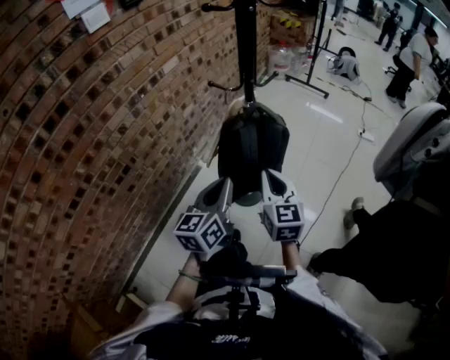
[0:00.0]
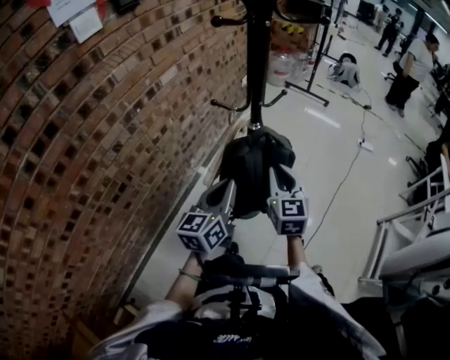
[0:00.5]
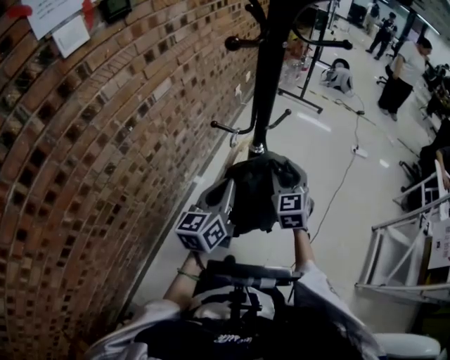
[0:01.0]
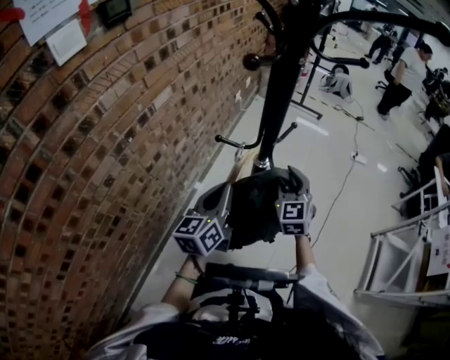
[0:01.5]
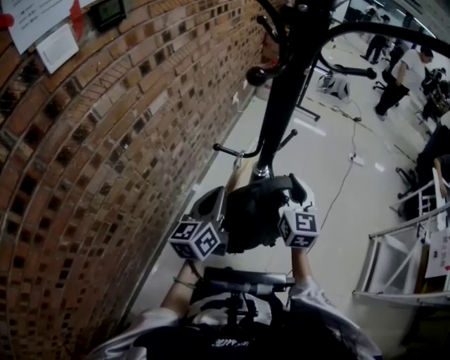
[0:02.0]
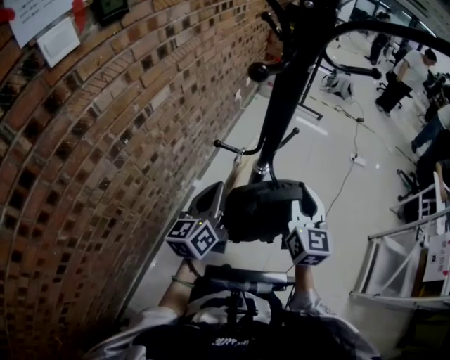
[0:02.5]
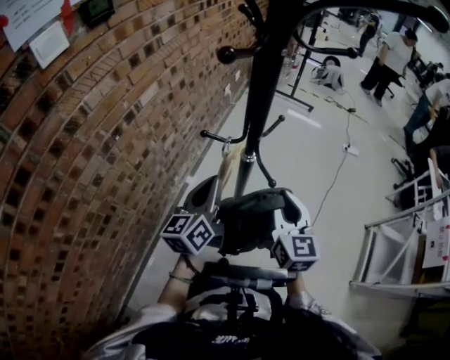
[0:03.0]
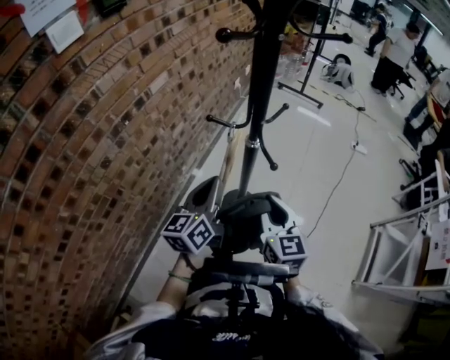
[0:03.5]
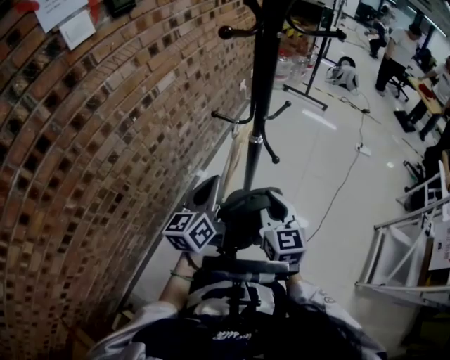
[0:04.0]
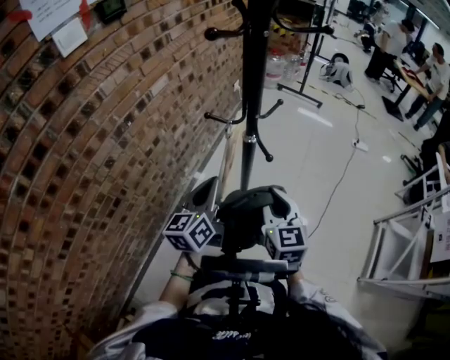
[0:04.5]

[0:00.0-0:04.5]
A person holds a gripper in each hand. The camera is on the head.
0:00.0 to 0:02.0: Both grippers move forward, roughly 25 cm. The right gripper opens, then closes again.
0:02.0 to 0:04.5: The right gripper shifts about 15 cm backward. Meanwhile the left gripper goes approximately 10 cm backward.

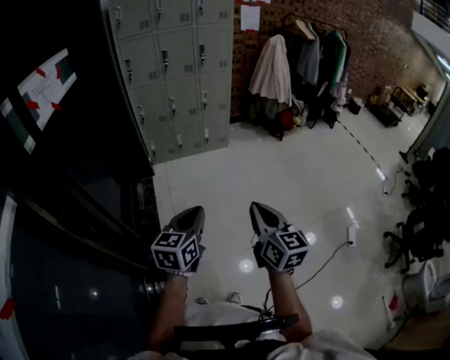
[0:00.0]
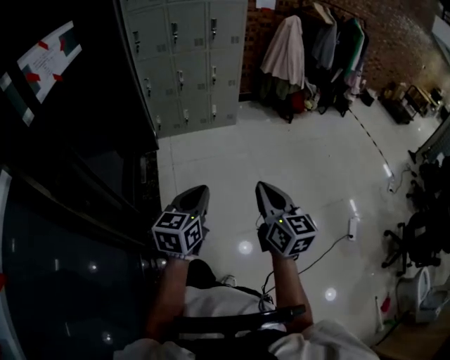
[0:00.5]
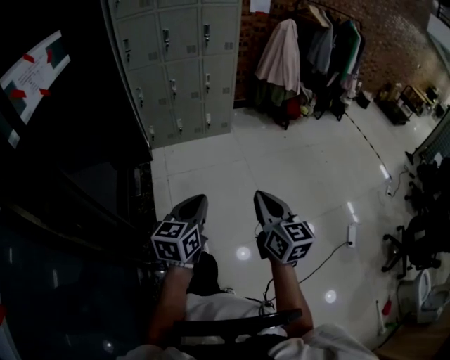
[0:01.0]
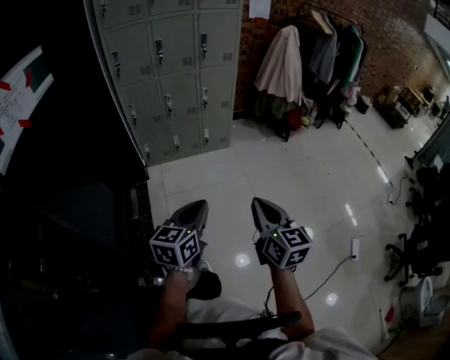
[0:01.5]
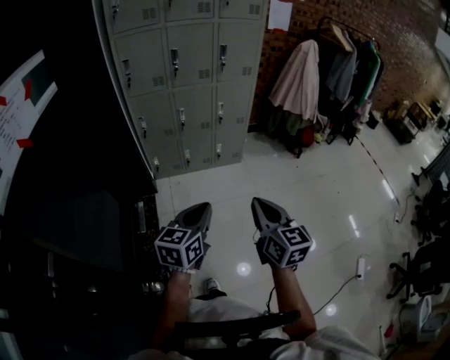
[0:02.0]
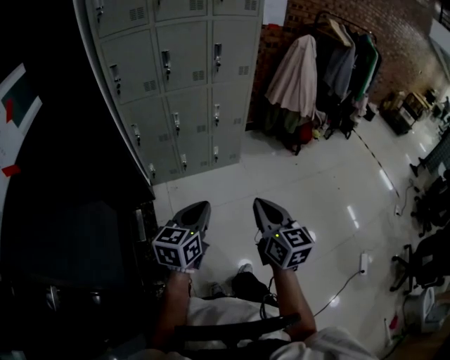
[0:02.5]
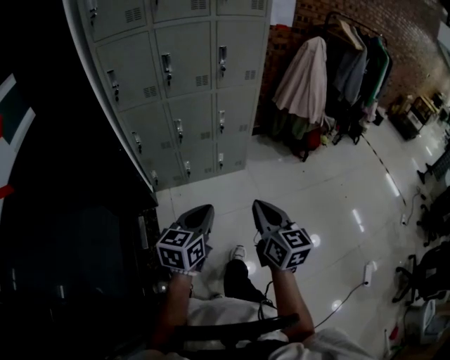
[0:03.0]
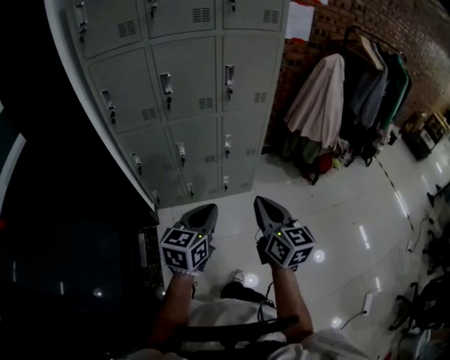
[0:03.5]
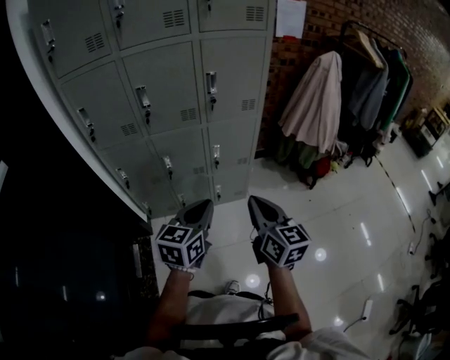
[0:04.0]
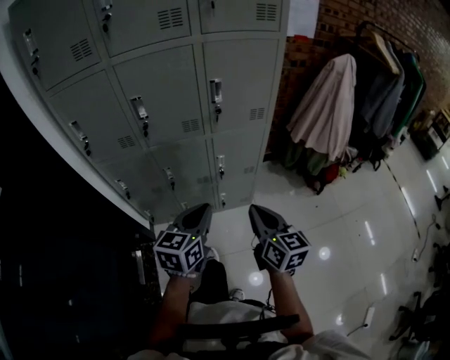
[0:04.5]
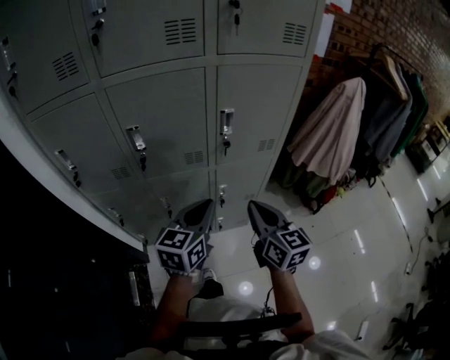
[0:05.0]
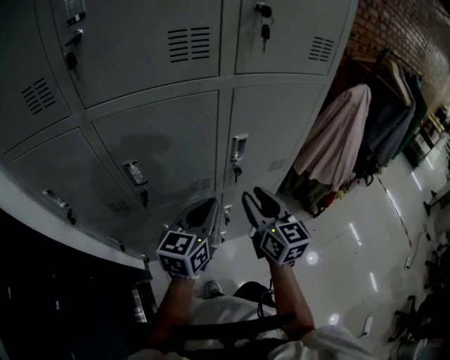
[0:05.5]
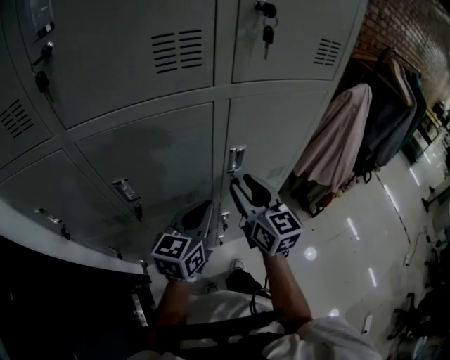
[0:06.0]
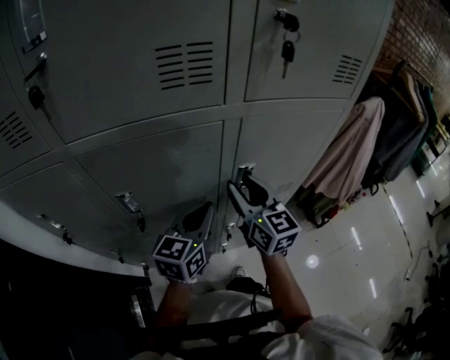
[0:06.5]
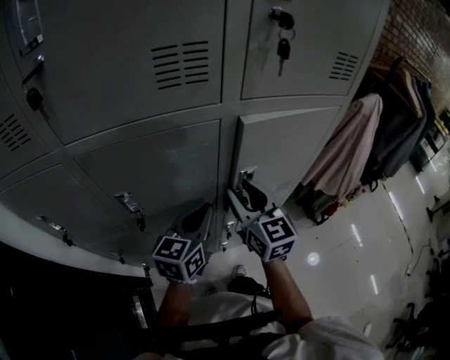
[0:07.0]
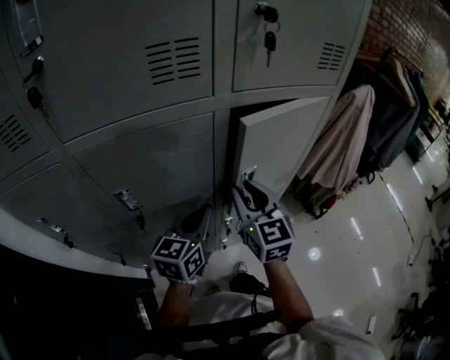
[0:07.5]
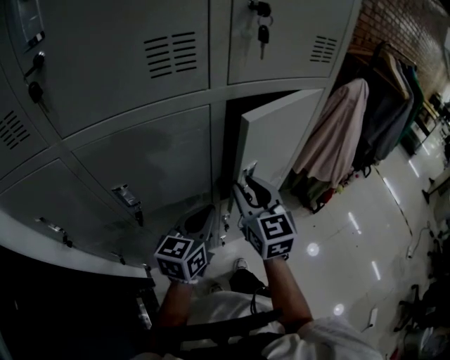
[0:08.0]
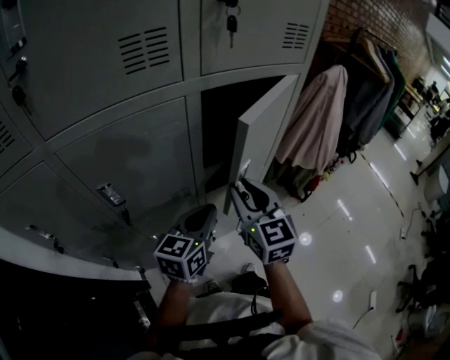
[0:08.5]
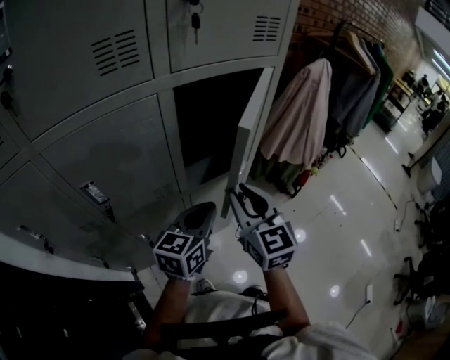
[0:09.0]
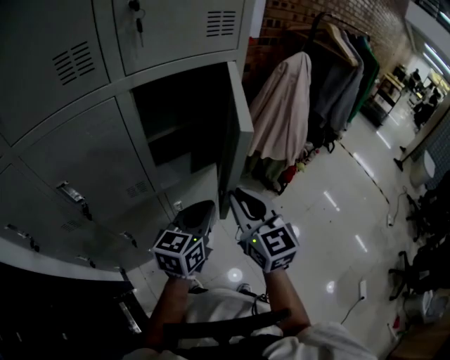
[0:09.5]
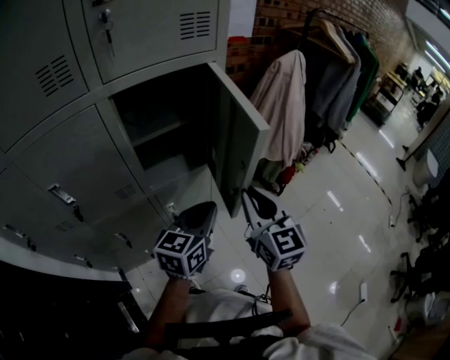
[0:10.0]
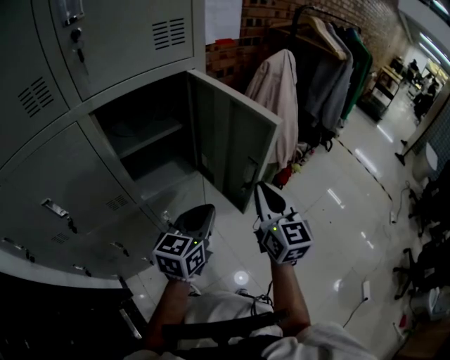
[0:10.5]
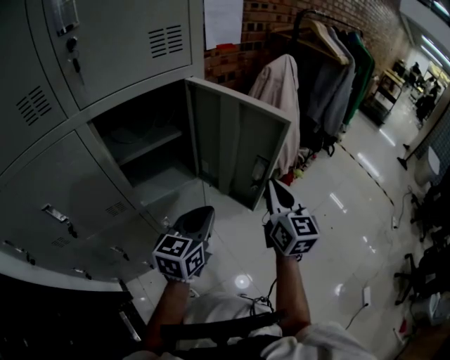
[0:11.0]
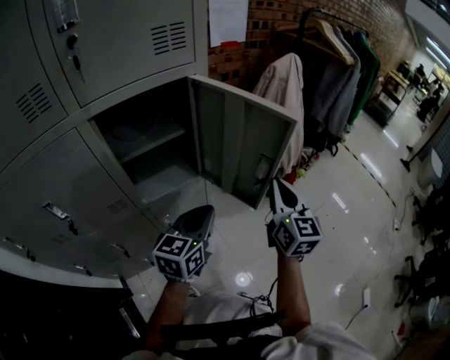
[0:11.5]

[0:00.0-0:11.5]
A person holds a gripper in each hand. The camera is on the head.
0:00.0 to 0:02.0: The two grippers go about 35 cm forward.
0:02.0 to 0:04.0: Both grippers are carried forward, roughly 40 cm.
0:04.0 to 0:06.0: The grippers both shift forward by some 40 cm. The right gripper opens up.
0:06.0 to 0:07.5: The right gripper closes its fingers.
0:07.5 to 0:09.5: The left gripper travels to the right by approximately 20 cm. The right gripper goes approximately 20 cm to the right and backward.
0:09.5 to 0:11.5: The right gripper heads to the right and forward, covering about 20 cm, and changes its angle by some 20 degrees. The left gripper moves to the right and forward, some 10 cm.

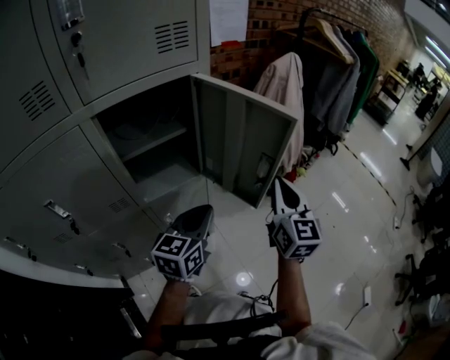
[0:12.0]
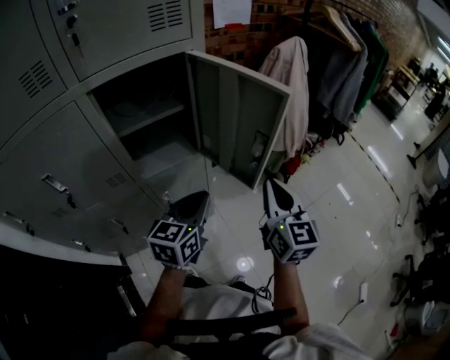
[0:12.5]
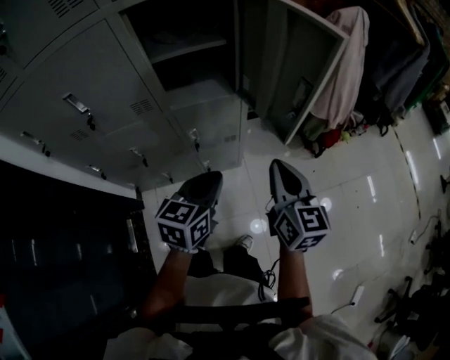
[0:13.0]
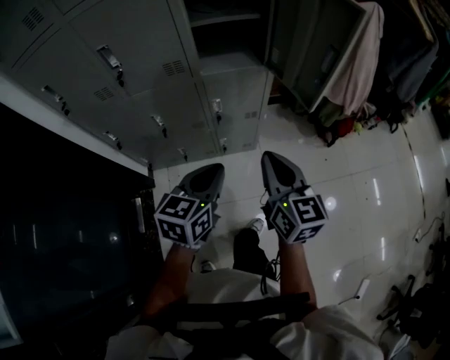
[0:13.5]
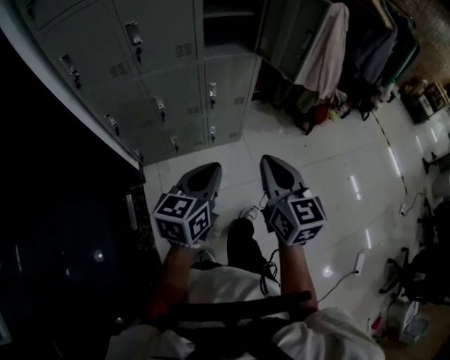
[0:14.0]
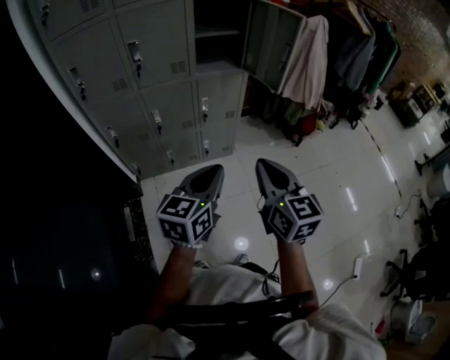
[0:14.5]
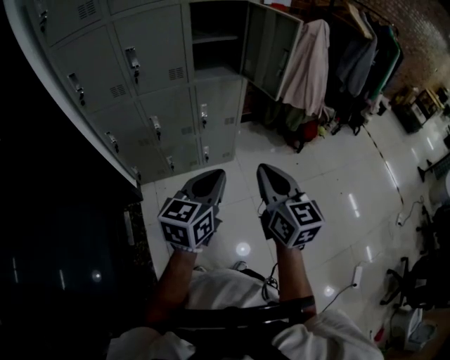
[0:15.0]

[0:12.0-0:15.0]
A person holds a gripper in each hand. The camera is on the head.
0:12.0 to 0:13.5: The right gripper moves approximately 25 cm, and rotates some 40 degrees. Meanwhile the left gripper ends up approximately 25 cm from where it was, and rotates roughly 20 degrees.
0:13.5 to 0:15.0: The right gripper shifts roughly 25 cm backward. The left gripper heads backward and upward, covering some 25 cm.

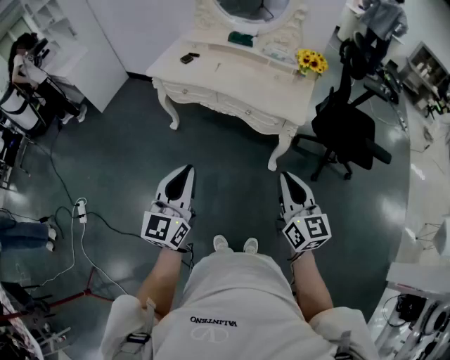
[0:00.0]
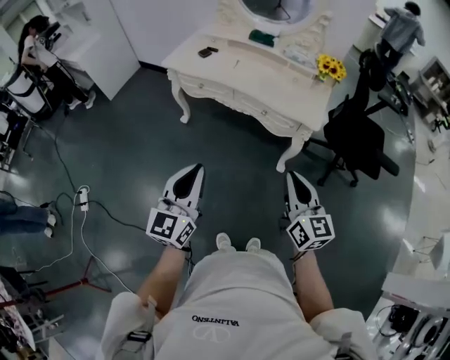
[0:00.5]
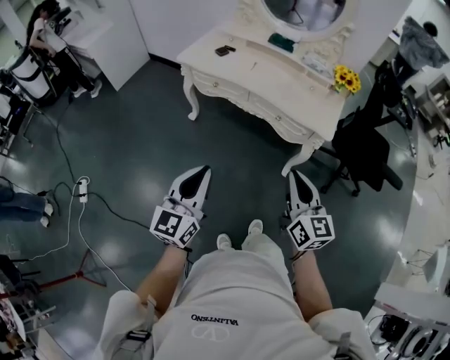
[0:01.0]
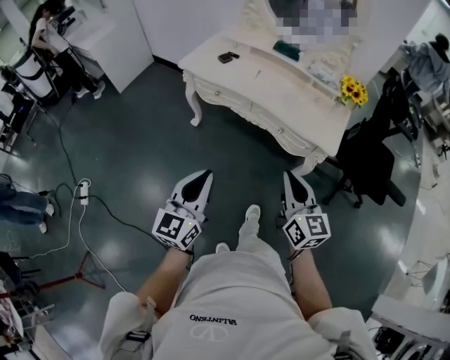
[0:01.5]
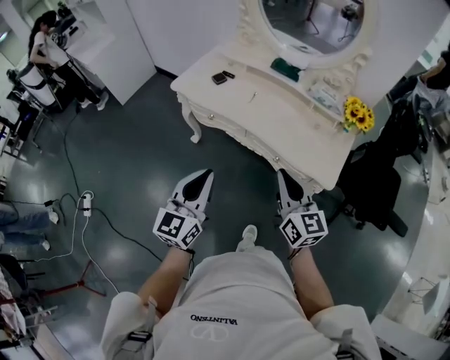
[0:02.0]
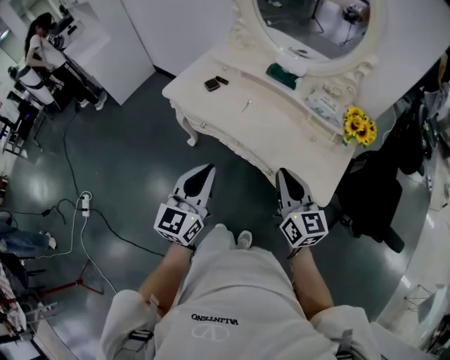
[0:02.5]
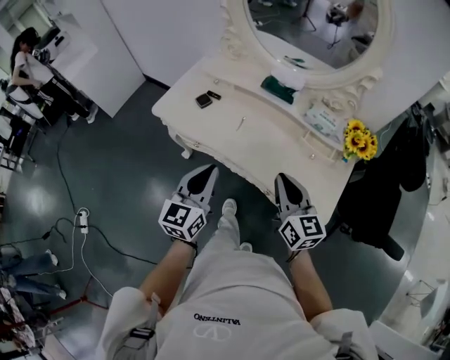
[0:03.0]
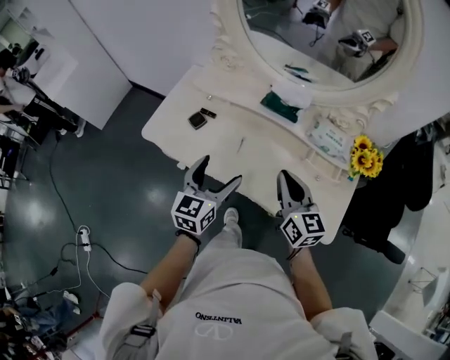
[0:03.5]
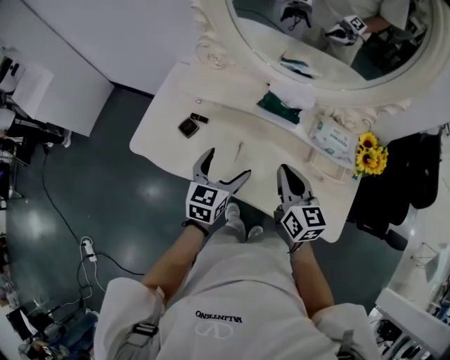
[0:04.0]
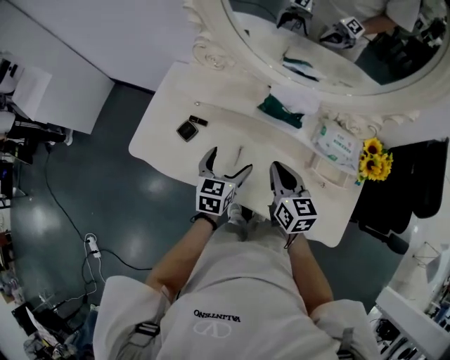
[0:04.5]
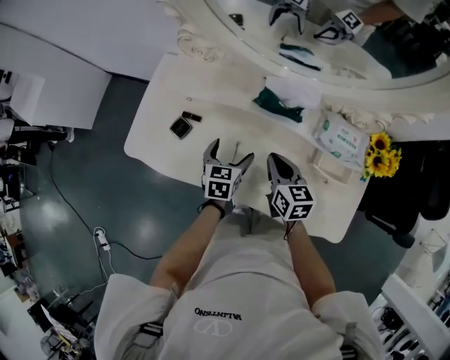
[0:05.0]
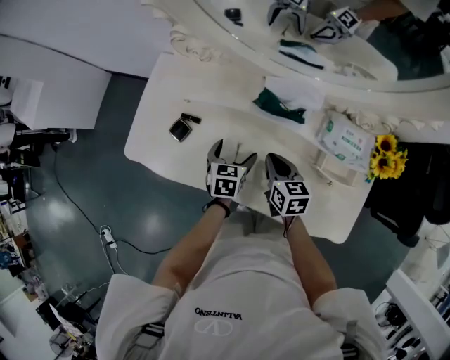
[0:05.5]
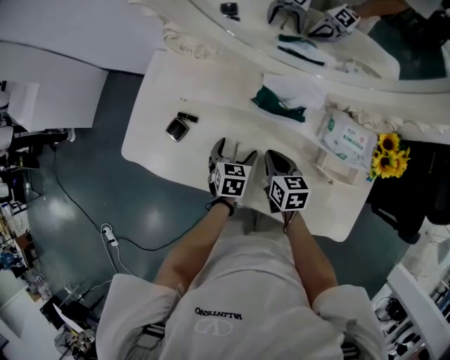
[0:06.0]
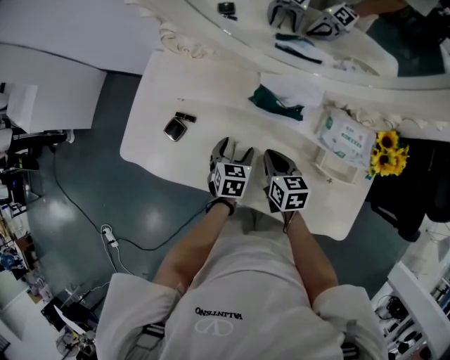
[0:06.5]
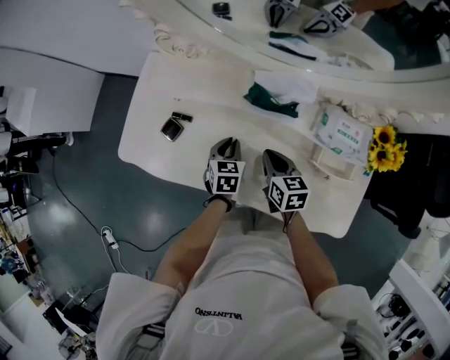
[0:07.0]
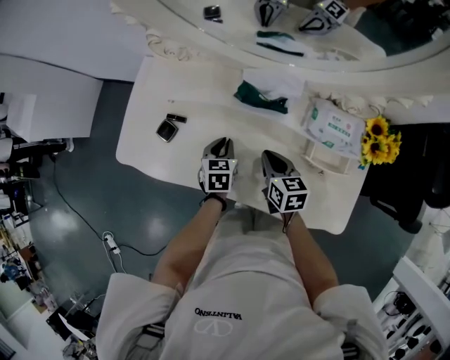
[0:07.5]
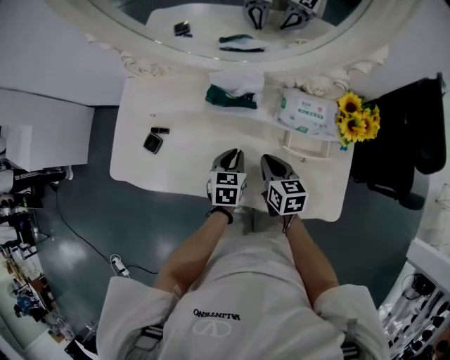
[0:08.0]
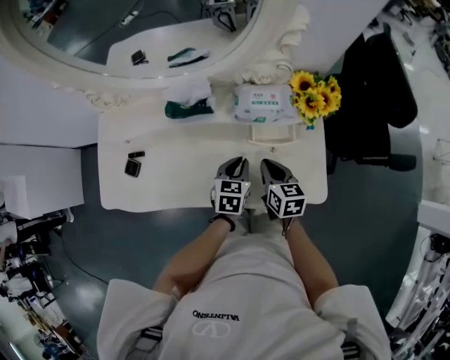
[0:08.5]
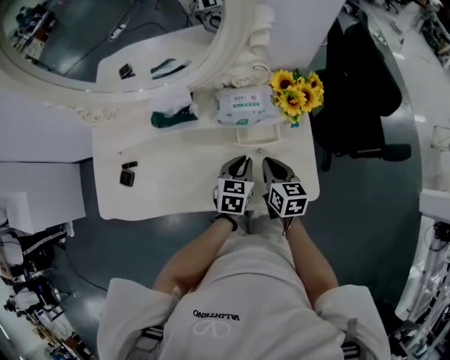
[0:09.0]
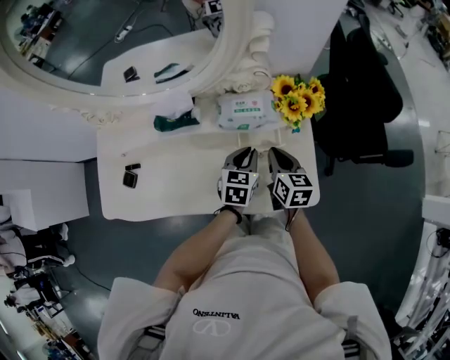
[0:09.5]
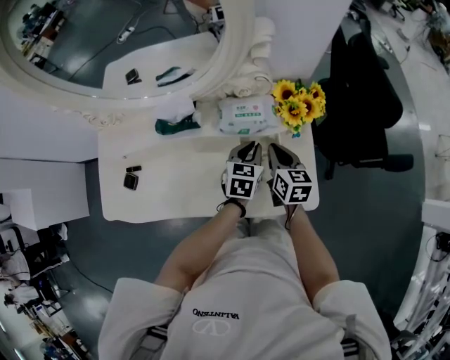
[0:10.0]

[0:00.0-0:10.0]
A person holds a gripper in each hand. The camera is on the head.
0:00.0 to 0:02.0: Both grippers move forward, approximately 25 cm.
0:02.0 to 0:04.0: The grippers both shift forward by roughly 40 cm. The left gripper rotates about 30 degrees, and opens up.
0:04.0 to 0:06.0: Both grippers move downward and forward, about 20 cm. The right gripper changes its angle by about 30 degrees, while the left gripper swivels approximately 30 degrees.
0:06.0 to 0:08.0: The grippers both shift to the right and backward by some 10 cm. The left gripper closes.
0:08.0 to 0:10.0: Both grippers travel together to the right, roughly 20 cm. The left gripper turns by approximately 20 degrees. Meanwhile the right gripper rotates roughly 20 degrees.
